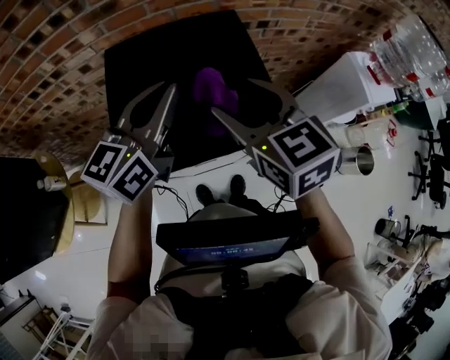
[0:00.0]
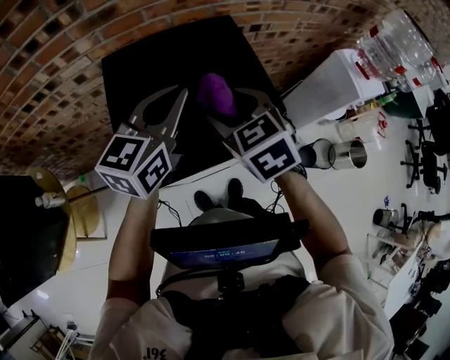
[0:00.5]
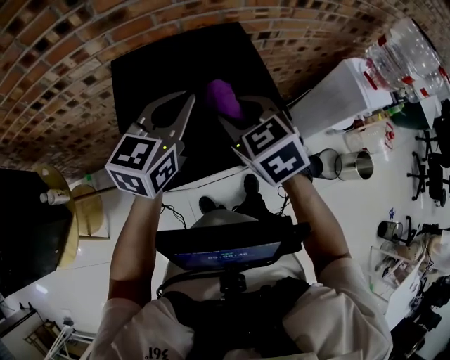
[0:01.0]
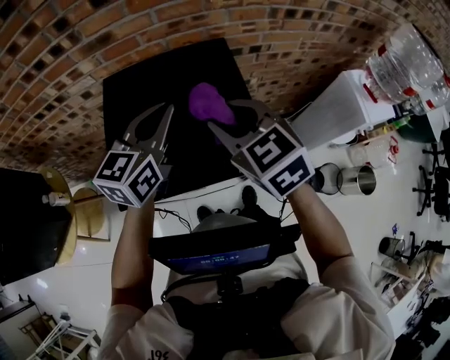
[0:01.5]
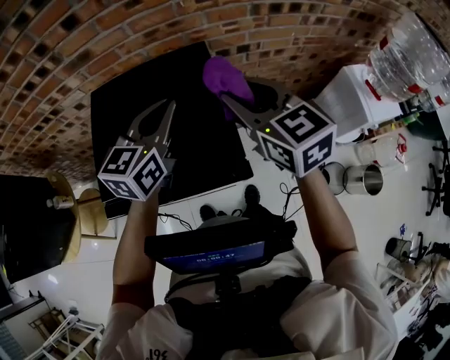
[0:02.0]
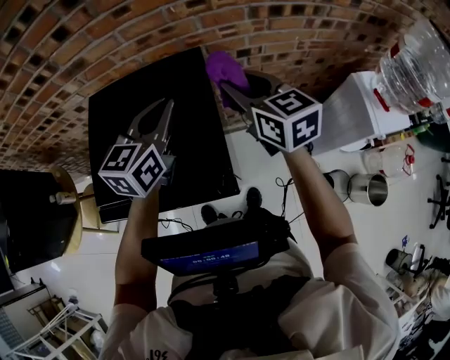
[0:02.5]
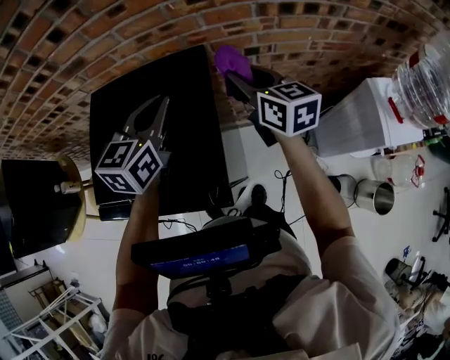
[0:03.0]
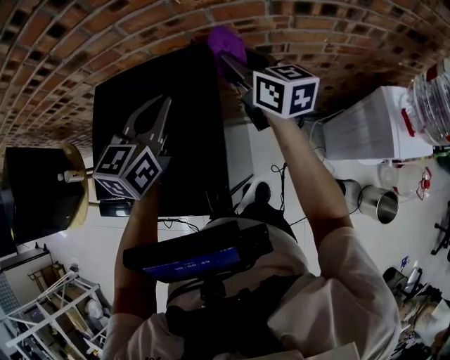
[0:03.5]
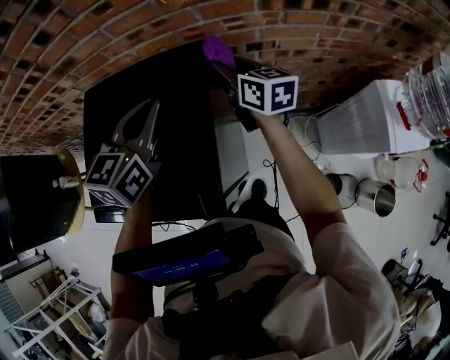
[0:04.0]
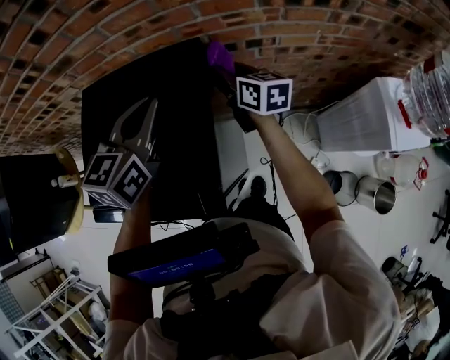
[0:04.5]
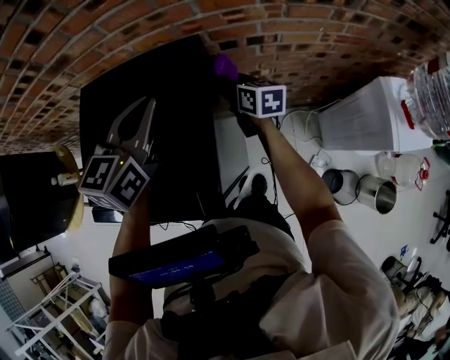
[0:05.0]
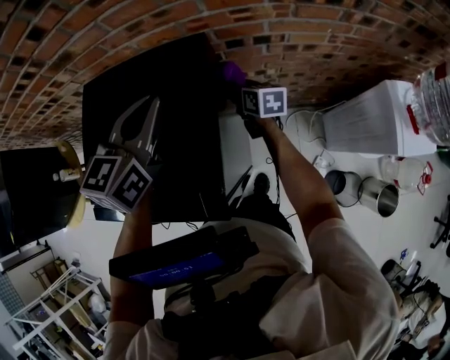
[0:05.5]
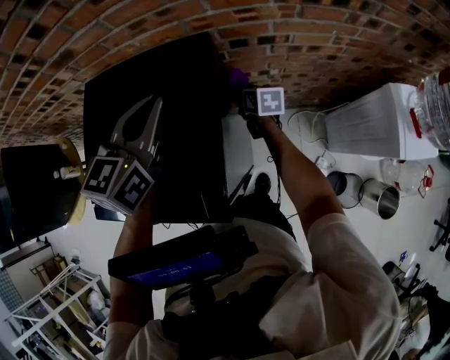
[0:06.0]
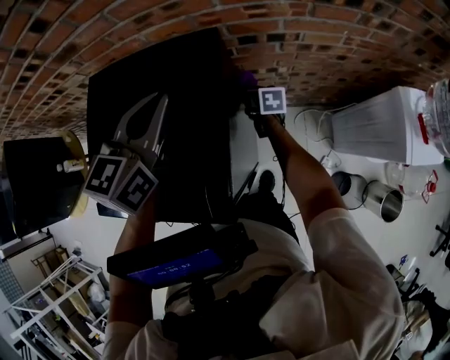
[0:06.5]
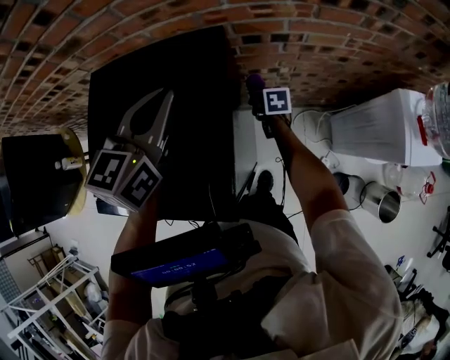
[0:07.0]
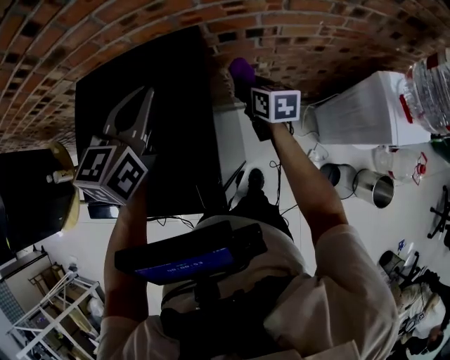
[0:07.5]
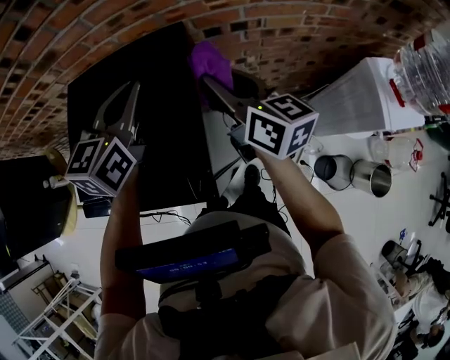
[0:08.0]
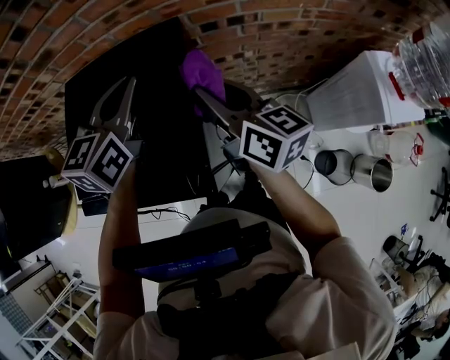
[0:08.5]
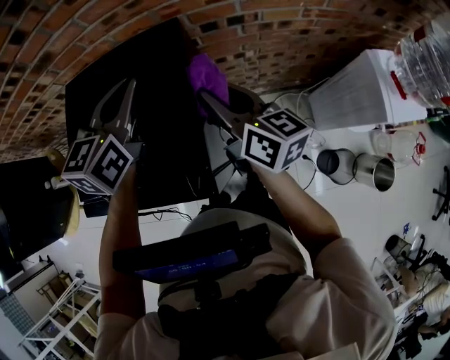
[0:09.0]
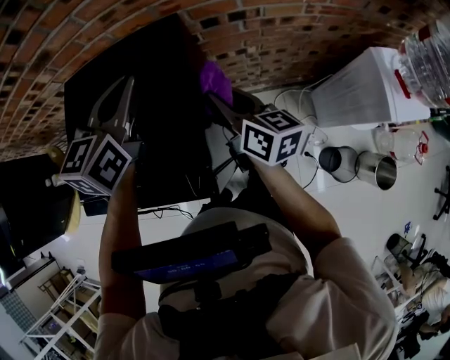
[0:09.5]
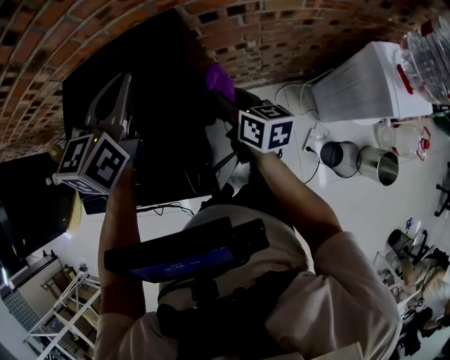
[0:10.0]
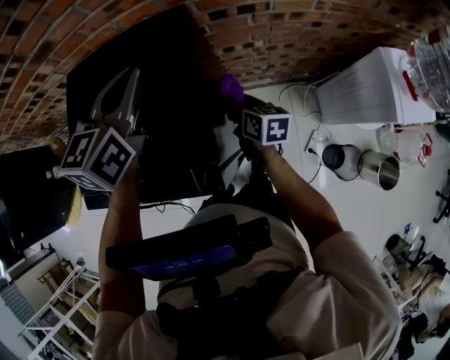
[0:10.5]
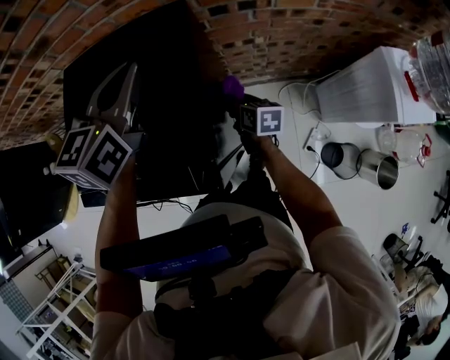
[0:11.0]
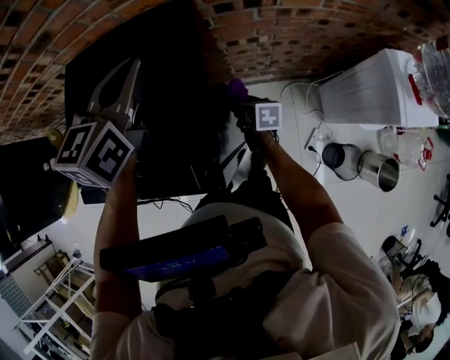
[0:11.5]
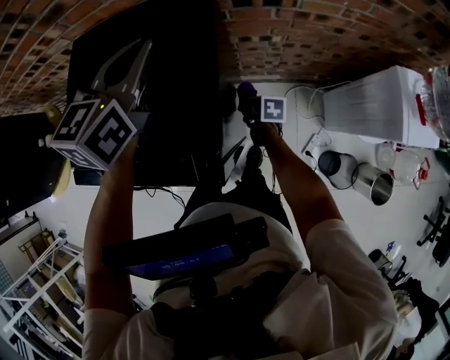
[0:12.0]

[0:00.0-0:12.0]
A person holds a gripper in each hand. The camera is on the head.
0.0 to 2.0 s: Both grippers move to the right and forward, about 10 cm. The right gripper closes up.
2.0 to 4.0 s: The left gripper shifts approximately 5 cm forward. The right gripper heads forward and downward, covering approximately 25 cm, and rotates some 30 degrees.
4.0 to 6.0 s: The right gripper is displaced downward by roughly 20 cm, and rotates some 20 degrees.
6.0 to 8.0 s: The right gripper shifts roughly 30 cm upward and backward, and tilts its fingers roughly 30 degrees upward.
8.0 to 10.0 s: The right gripper travels downward by some 15 cm.
10.0 to 12.0 s: The right gripper heads downward, covering roughly 25 cm, and tilts its fingers roughly 30 degrees downward.

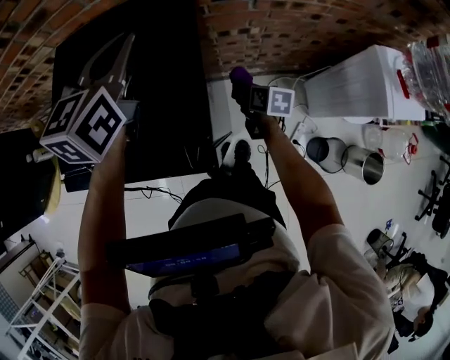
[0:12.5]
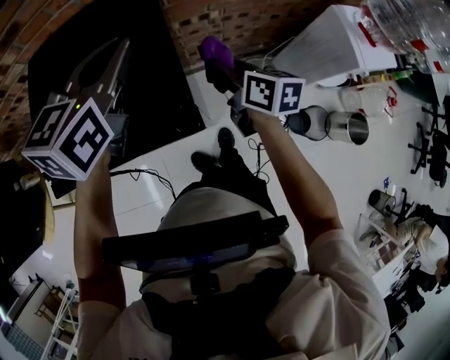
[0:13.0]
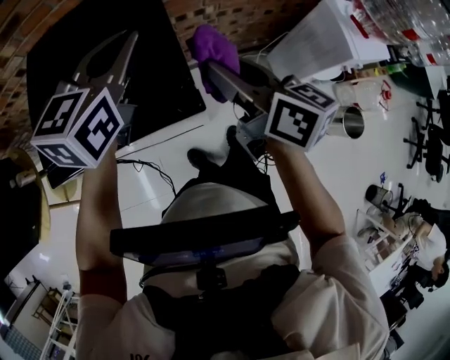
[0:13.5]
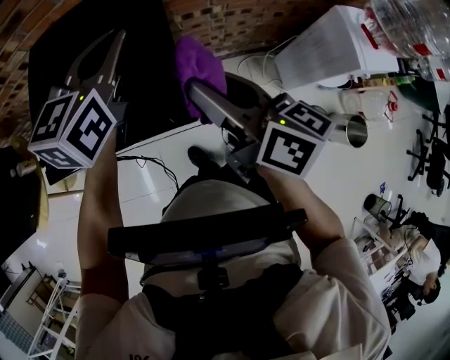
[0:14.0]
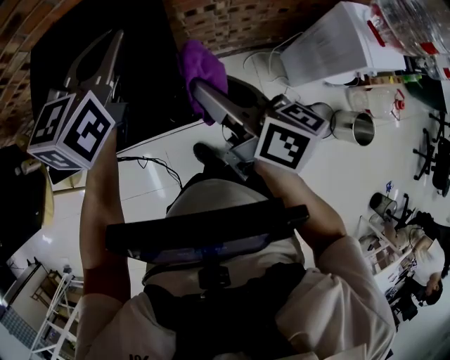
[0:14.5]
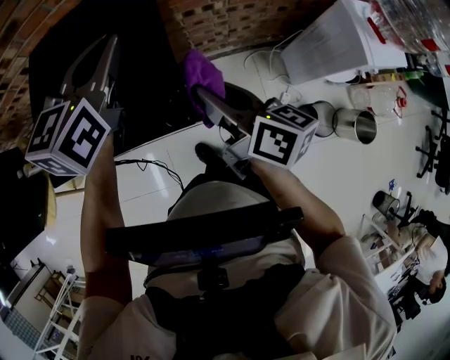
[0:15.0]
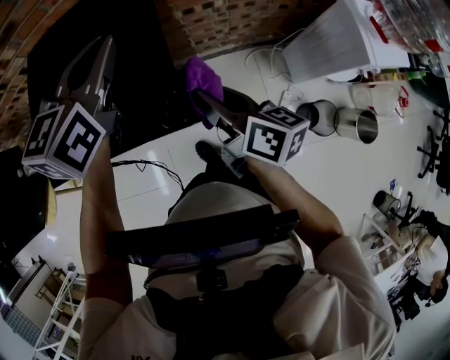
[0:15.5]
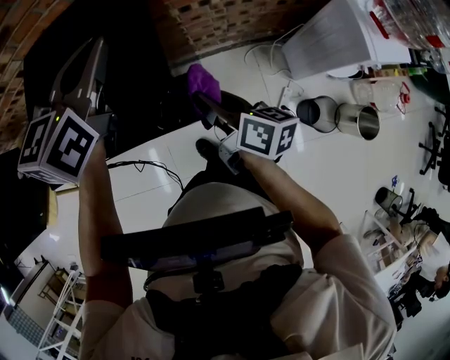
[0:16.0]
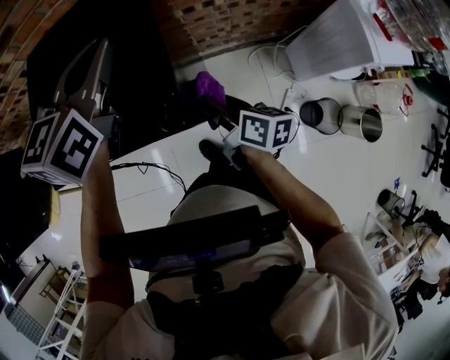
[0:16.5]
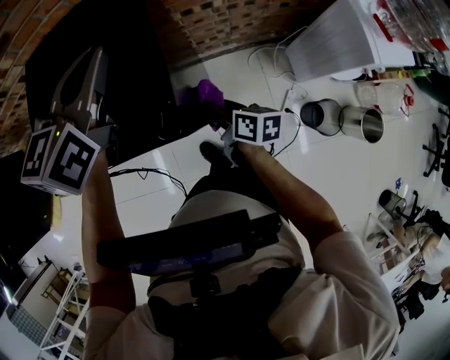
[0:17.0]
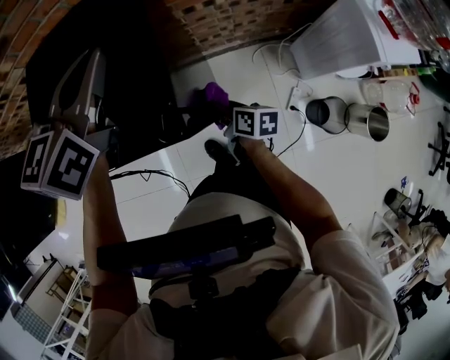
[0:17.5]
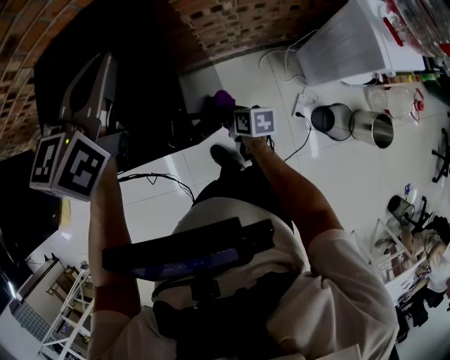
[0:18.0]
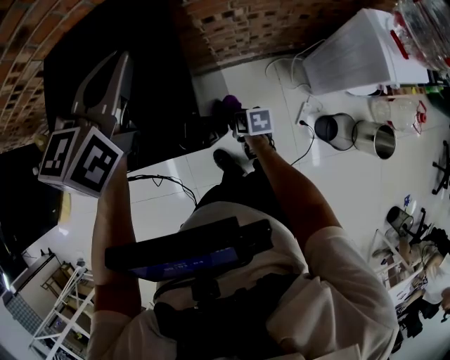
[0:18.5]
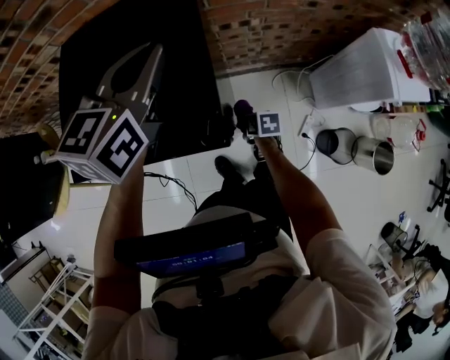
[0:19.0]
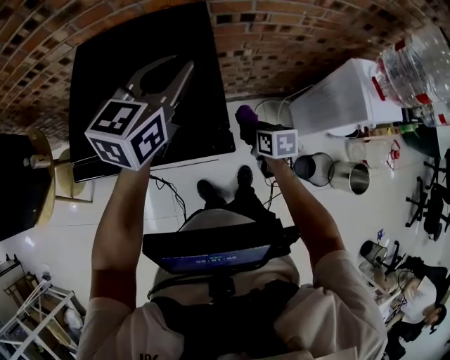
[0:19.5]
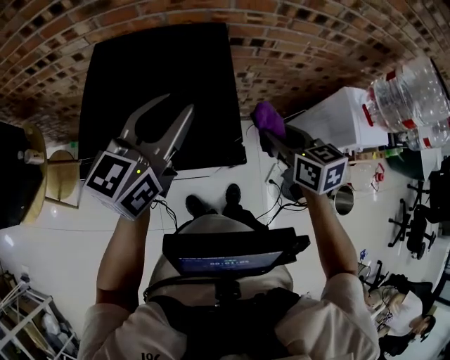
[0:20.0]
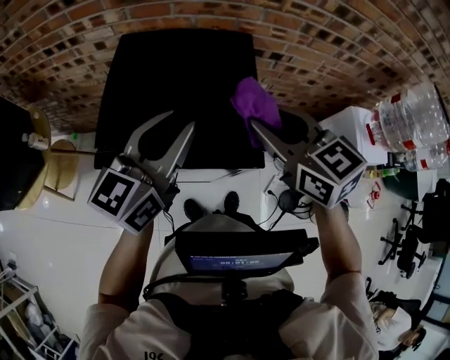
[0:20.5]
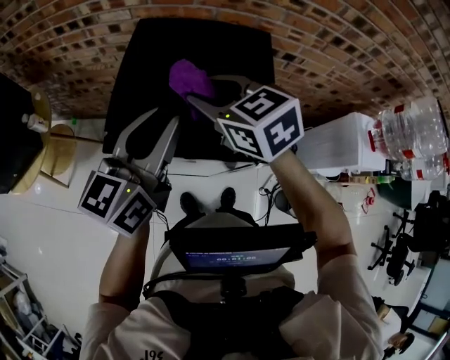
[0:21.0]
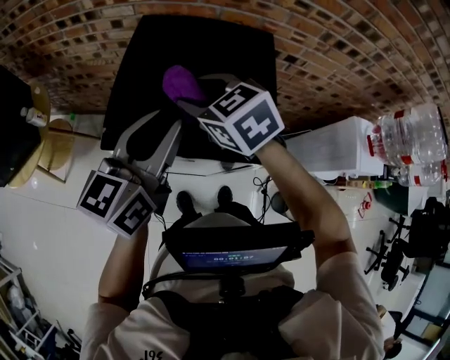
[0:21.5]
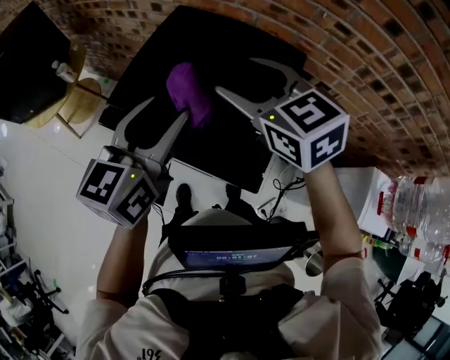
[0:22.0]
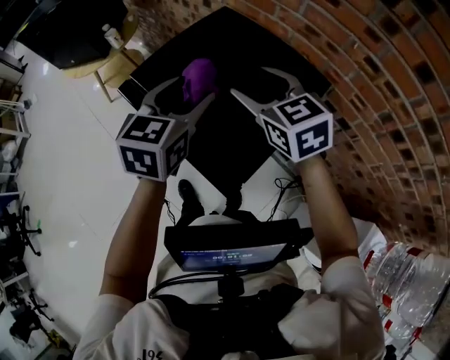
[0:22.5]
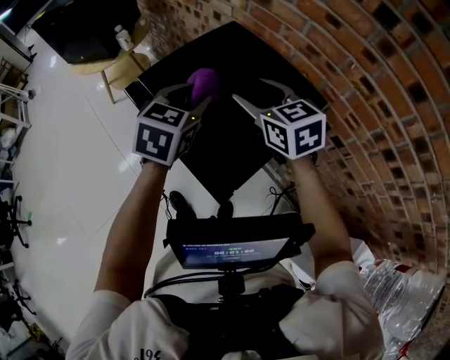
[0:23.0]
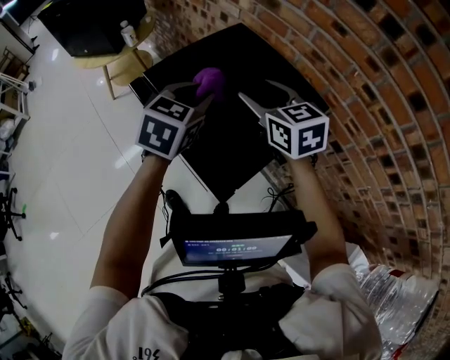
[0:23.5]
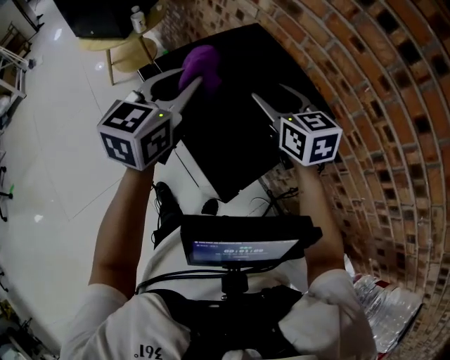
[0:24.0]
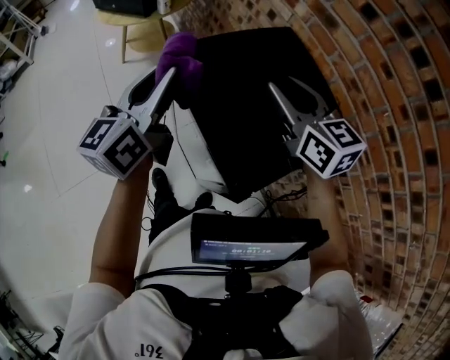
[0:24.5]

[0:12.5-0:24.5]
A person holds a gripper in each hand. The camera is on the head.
12.5 to 14.5 s: The left gripper shifts roughly 5 cm backward. Meanwhile the right gripper shifts some 30 cm upward and backward, and angles its fingers upward, by about 40 degrees.
14.5 to 16.5 s: The right gripper travels downward by about 20 cm.
16.5 to 18.5 s: The right gripper shifts roughly 20 cm downward, and angles its fingers downward, by roughly 30 degrees.
18.5 to 20.5 s: The right gripper goes roughly 50 cm upward, and rotates around the line of its fingers by some 50 degrees, counterclockwise from behind; the left gripper goes about 15 cm backward and to the left, swivels approximately 20 degrees, and opens its fingers.
20.5 to 22.5 s: The left gripper ends up roughly 10 cm from where it was, rotates roughly 50 degrees, and opens. The right gripper swings up and down, roughly 5 cm each way, with 2 reversals, rotates approximately 40 degrees, and opens up.
22.5 to 24.5 s: The right gripper shifts about 5 cm to the left, and closes its fingers. Meanwhile the left gripper shifts about 15 cm to the left, swivels roughly 40 degrees, and closes up.

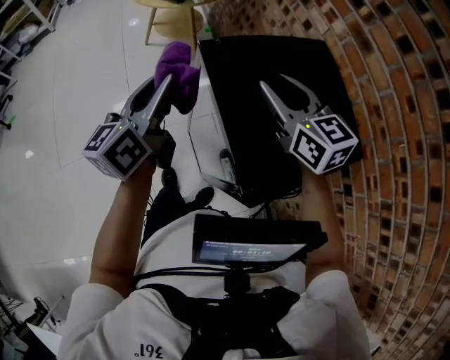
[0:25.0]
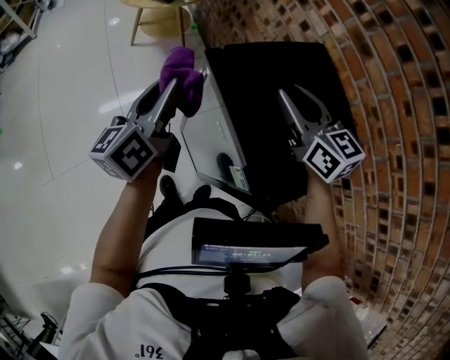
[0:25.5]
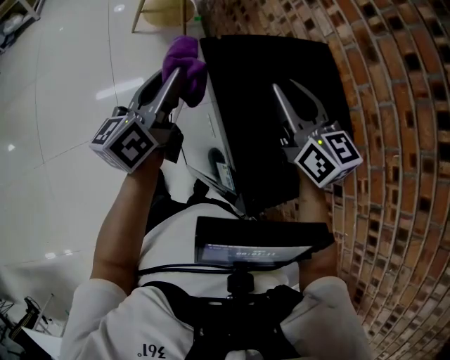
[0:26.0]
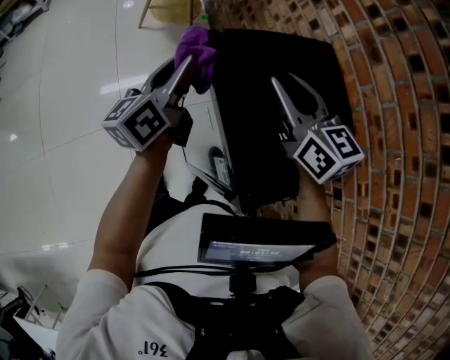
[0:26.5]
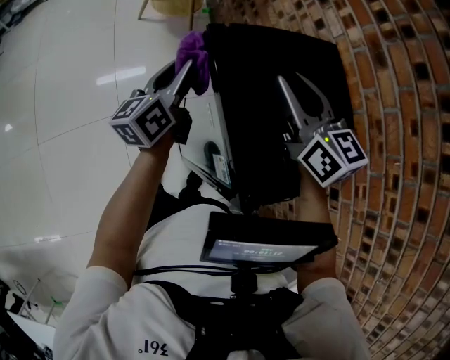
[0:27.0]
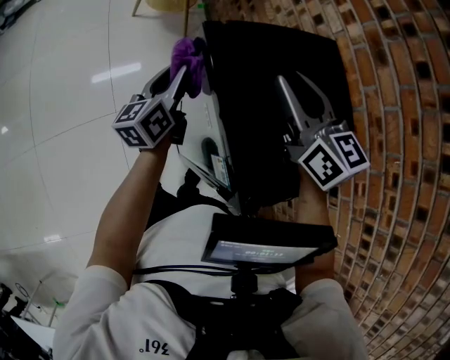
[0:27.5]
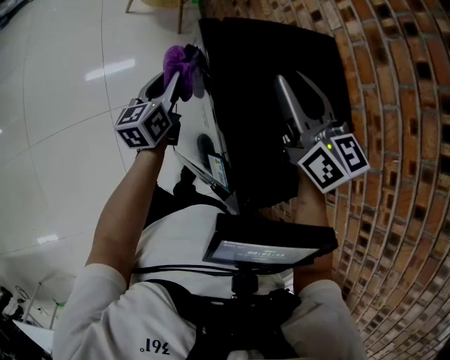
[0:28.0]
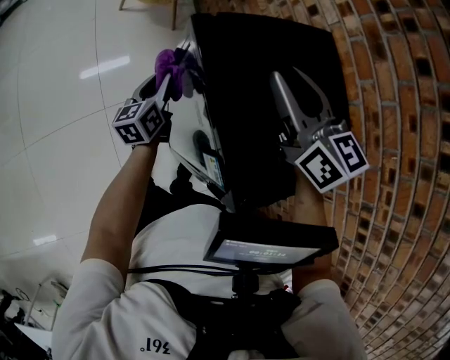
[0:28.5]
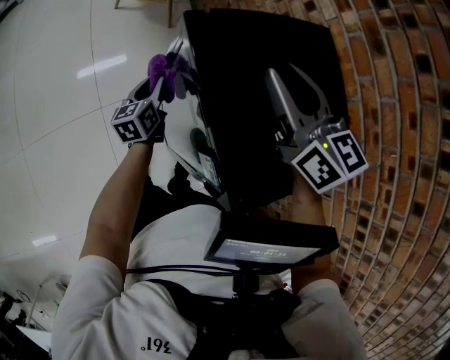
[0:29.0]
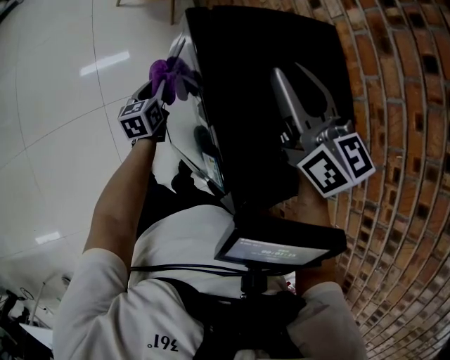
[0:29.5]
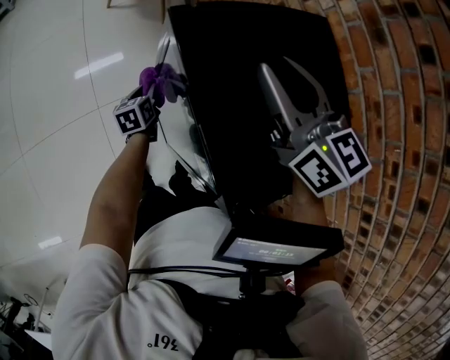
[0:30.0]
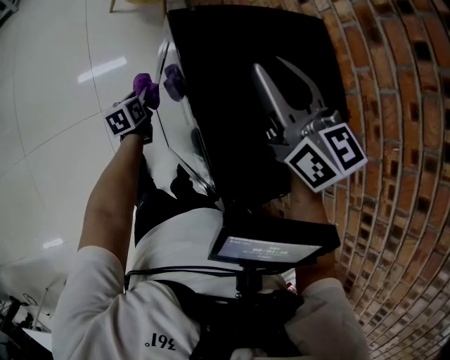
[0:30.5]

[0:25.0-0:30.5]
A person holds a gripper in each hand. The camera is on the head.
25.0 to 27.0 s: The left gripper shifts roughly 10 cm downward.
27.0 to 28.5 s: The left gripper is displaced downward by roughly 15 cm.
28.5 to 30.5 s: The left gripper is displaced downward by about 15 cm, and changes its angle by approximately 20 degrees.
